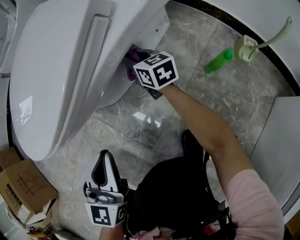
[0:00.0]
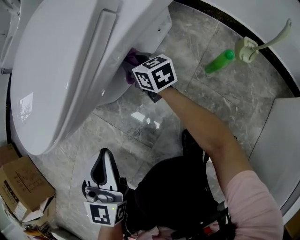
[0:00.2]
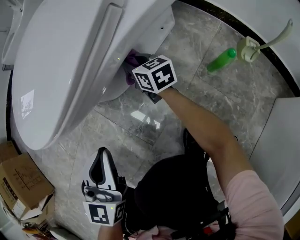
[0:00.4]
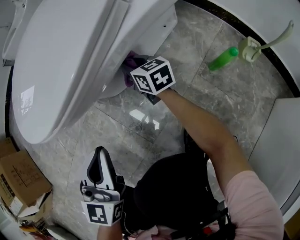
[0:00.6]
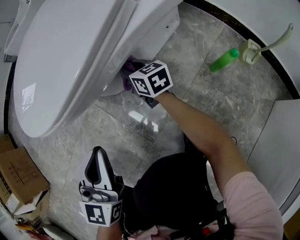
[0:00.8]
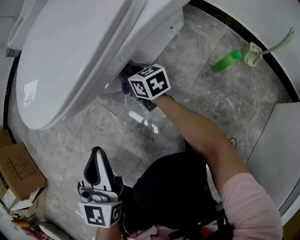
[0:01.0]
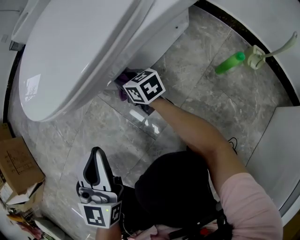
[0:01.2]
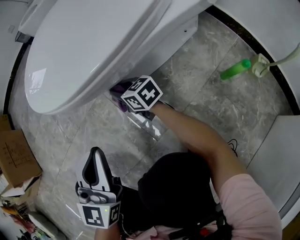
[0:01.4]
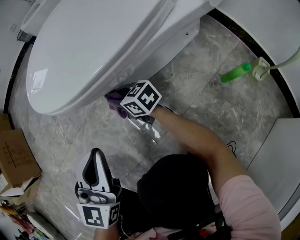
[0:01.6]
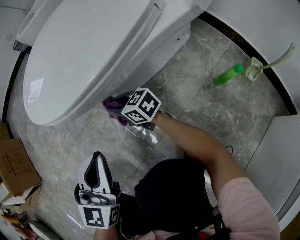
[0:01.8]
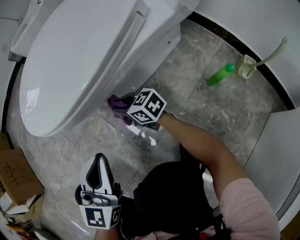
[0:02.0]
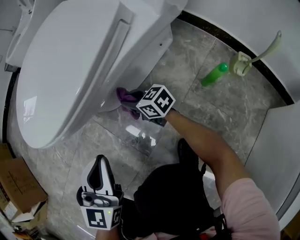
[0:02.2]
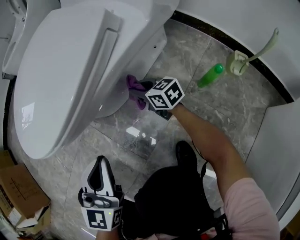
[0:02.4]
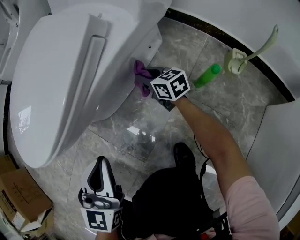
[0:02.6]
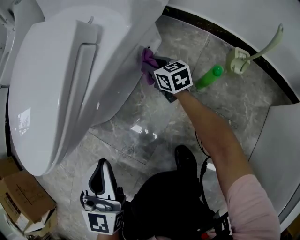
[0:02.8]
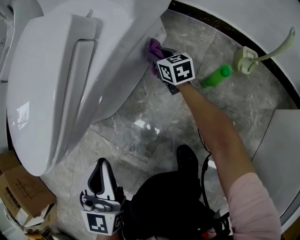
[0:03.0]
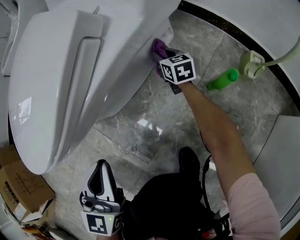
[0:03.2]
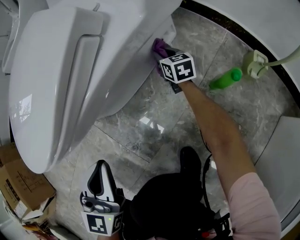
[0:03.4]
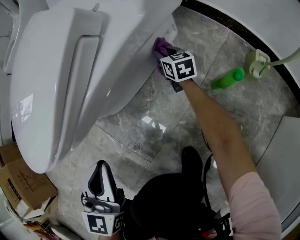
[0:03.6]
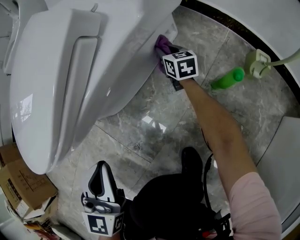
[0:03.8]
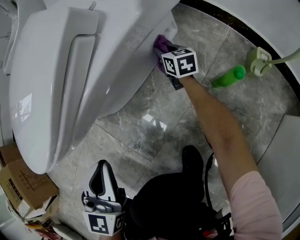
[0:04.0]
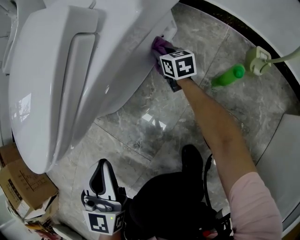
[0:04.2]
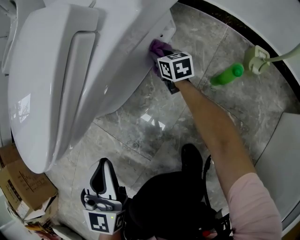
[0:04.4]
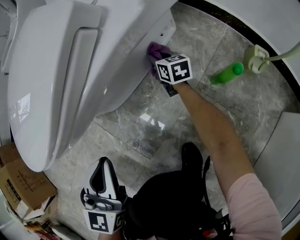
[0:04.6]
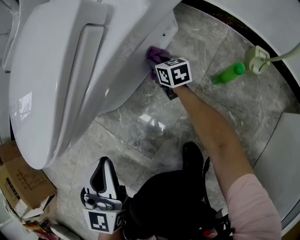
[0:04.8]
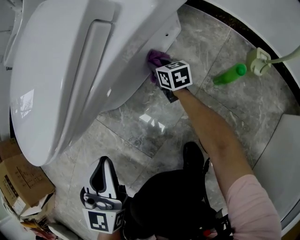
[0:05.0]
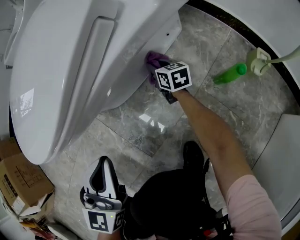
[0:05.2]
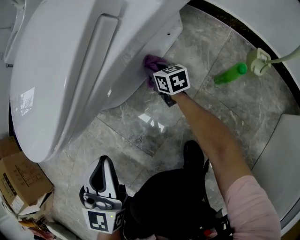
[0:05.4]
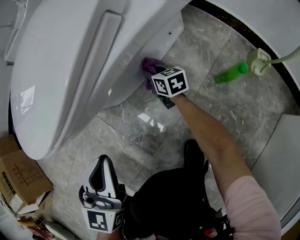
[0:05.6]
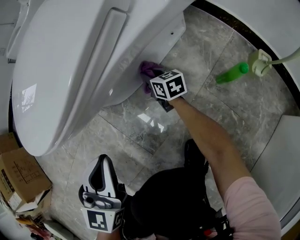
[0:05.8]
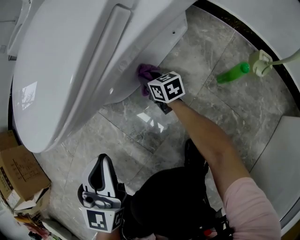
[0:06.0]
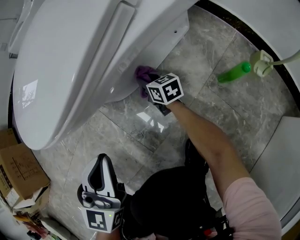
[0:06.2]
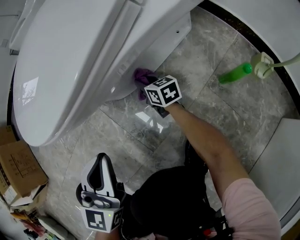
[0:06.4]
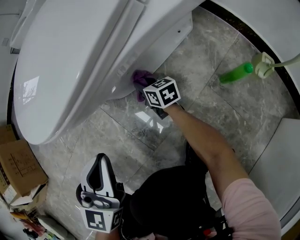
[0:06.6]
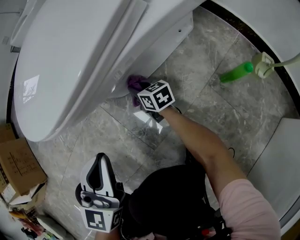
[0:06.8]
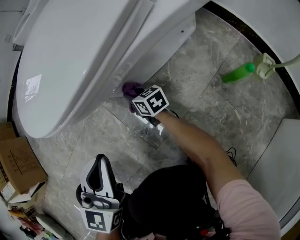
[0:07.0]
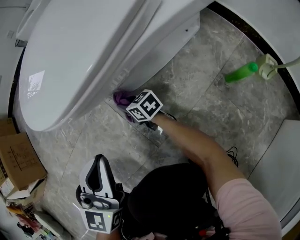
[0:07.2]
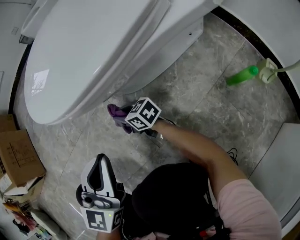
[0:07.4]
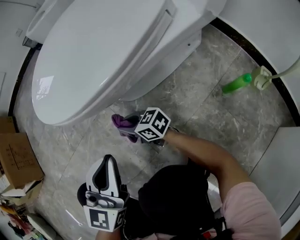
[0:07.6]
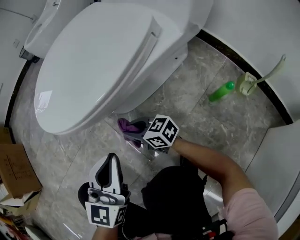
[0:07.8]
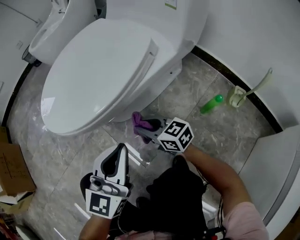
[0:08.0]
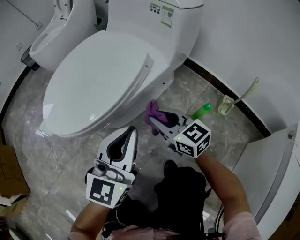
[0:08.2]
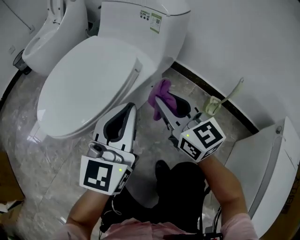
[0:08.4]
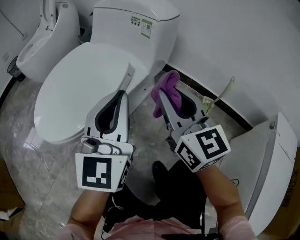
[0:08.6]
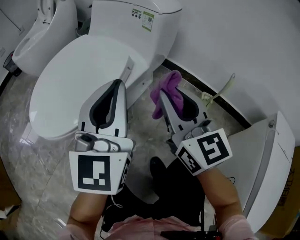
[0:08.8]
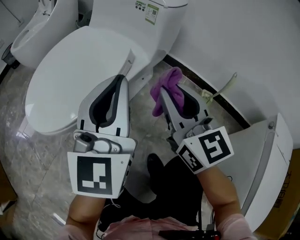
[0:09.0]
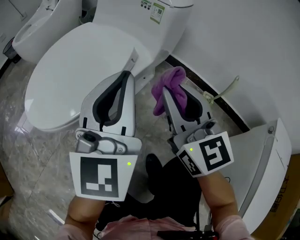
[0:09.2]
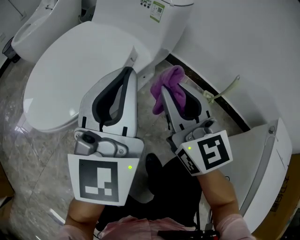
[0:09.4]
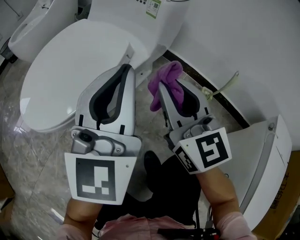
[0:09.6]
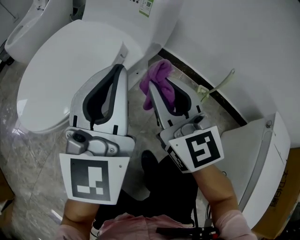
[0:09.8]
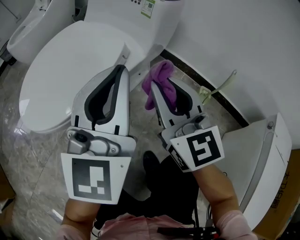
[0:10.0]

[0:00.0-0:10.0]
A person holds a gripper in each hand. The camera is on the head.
0:00.0 to 0:01.4: The right gripper is displaced to the left by roughly 25 cm, and rotates approximately 30 degrees; the left gripper travels to the left by roughly 10 cm.
0:01.4 to 0:02.8: The right gripper shifts by approximately 35 cm, and rotates approximately 40 degrees. Meanwhile the left gripper ends up some 15 cm from where it was.
0:02.8 to 0:04.2: The right gripper heads downward, covering roughly 5 cm.
0:04.2 to 0:05.8: The right gripper moves to the left and backward, some 15 cm.
0:05.8 to 0:07.2: The left gripper shifts roughly 5 cm to the left, while the right gripper heads to the left, covering about 25 cm, and turns by some 30 degrees.
0:07.2 to 0:08.6: The left gripper travels upward by roughly 25 cm, and turns by roughly 30 degrees. The right gripper is displaced upward by some 50 cm, and turns by approximately 70 degrees.
0:08.6 to 0:10.0: The grippers make only small movements.

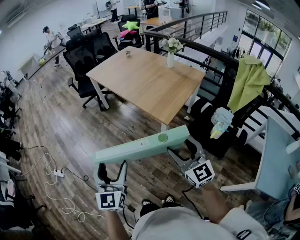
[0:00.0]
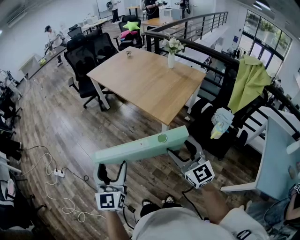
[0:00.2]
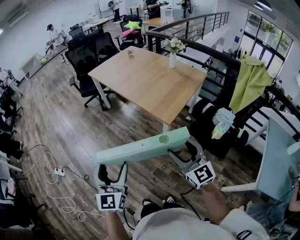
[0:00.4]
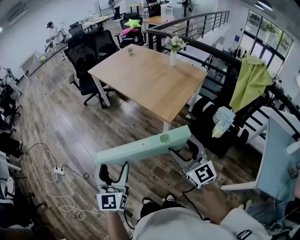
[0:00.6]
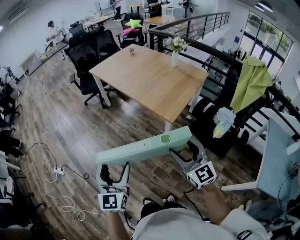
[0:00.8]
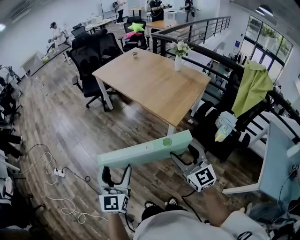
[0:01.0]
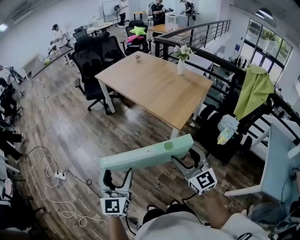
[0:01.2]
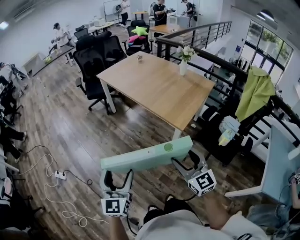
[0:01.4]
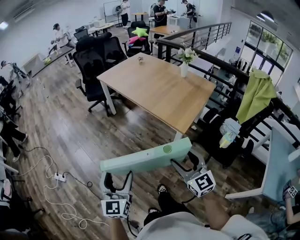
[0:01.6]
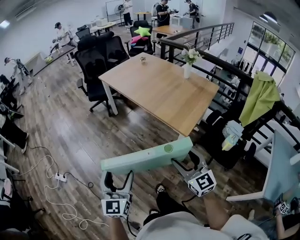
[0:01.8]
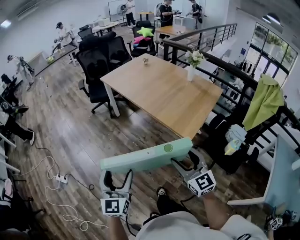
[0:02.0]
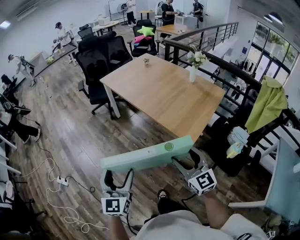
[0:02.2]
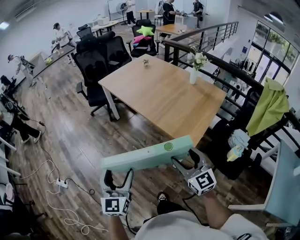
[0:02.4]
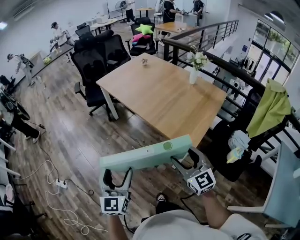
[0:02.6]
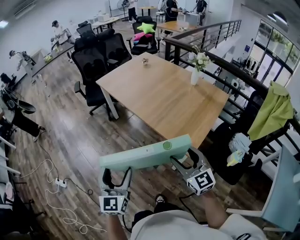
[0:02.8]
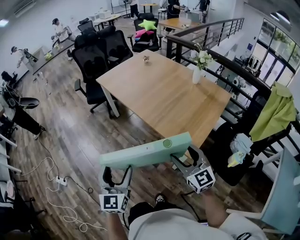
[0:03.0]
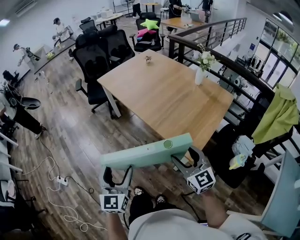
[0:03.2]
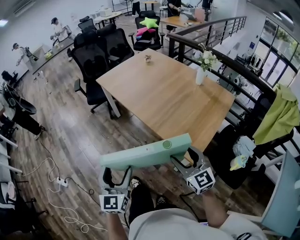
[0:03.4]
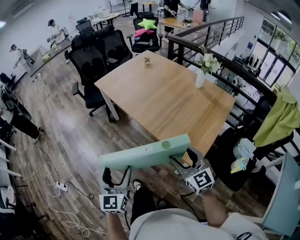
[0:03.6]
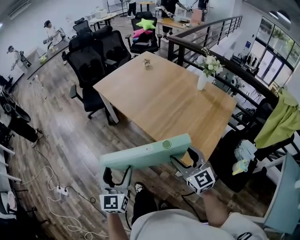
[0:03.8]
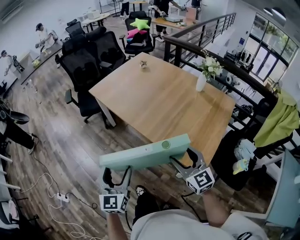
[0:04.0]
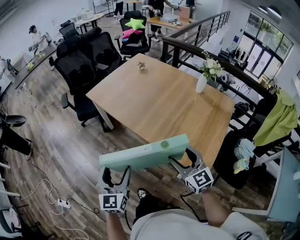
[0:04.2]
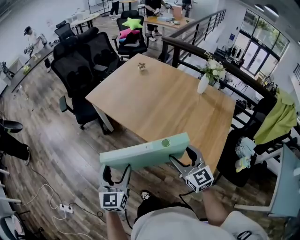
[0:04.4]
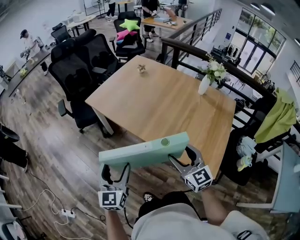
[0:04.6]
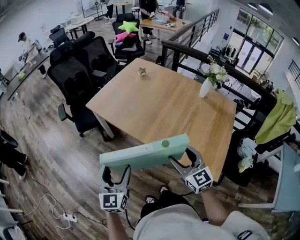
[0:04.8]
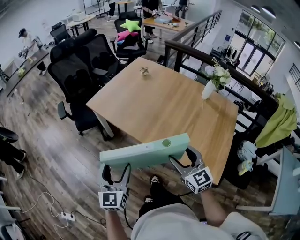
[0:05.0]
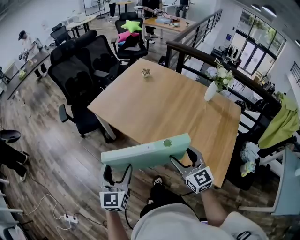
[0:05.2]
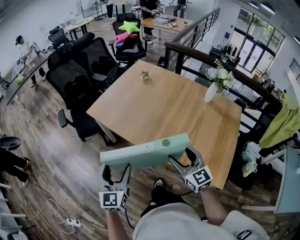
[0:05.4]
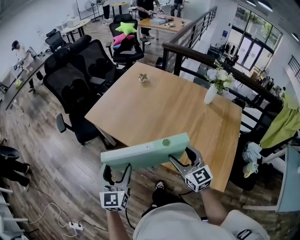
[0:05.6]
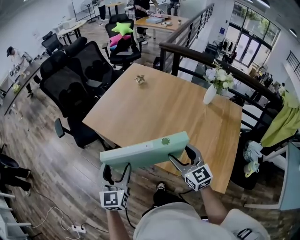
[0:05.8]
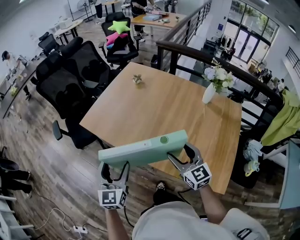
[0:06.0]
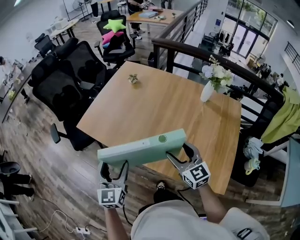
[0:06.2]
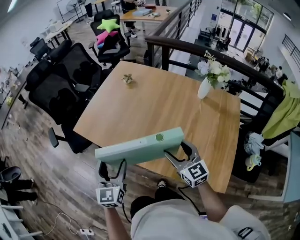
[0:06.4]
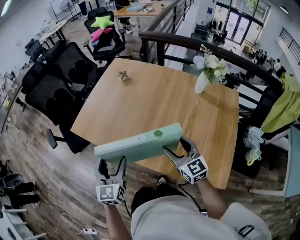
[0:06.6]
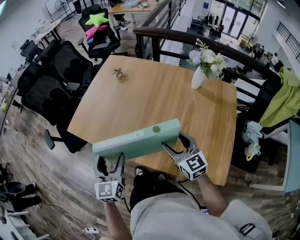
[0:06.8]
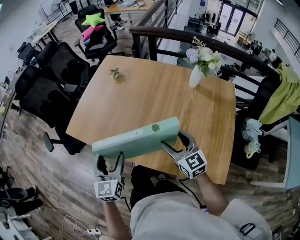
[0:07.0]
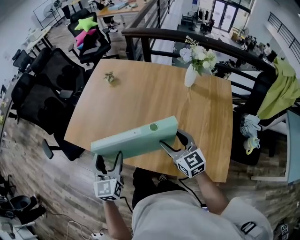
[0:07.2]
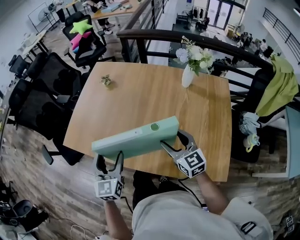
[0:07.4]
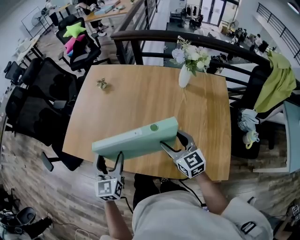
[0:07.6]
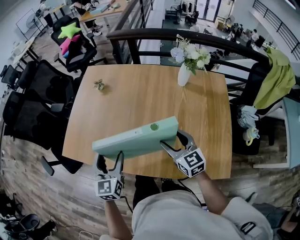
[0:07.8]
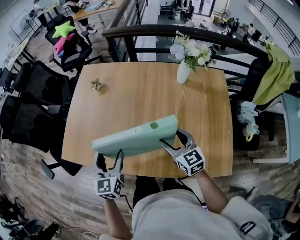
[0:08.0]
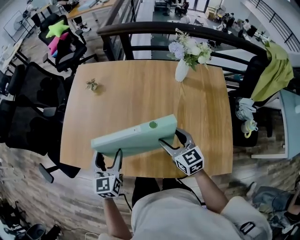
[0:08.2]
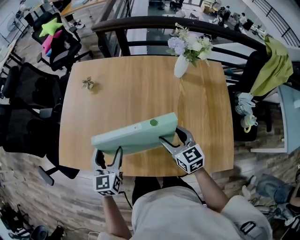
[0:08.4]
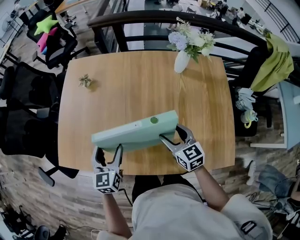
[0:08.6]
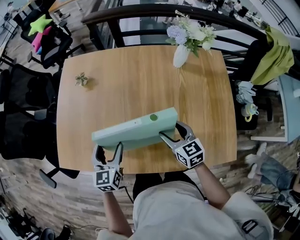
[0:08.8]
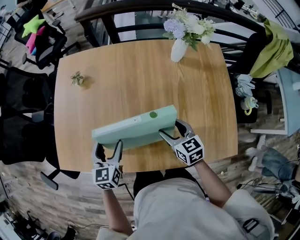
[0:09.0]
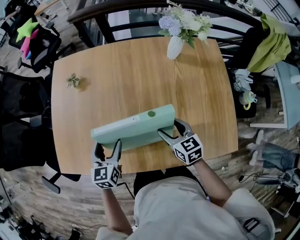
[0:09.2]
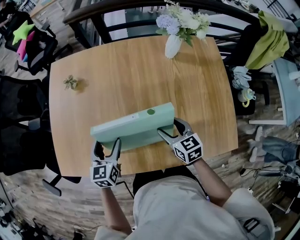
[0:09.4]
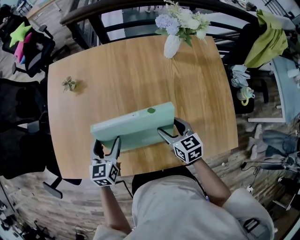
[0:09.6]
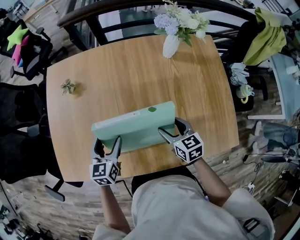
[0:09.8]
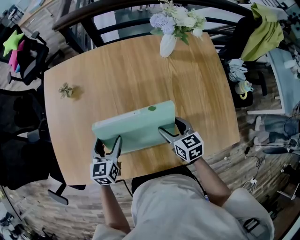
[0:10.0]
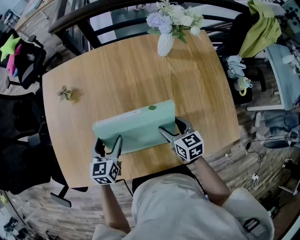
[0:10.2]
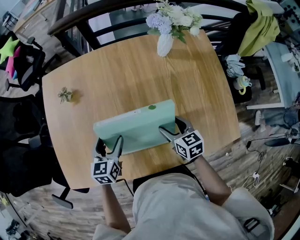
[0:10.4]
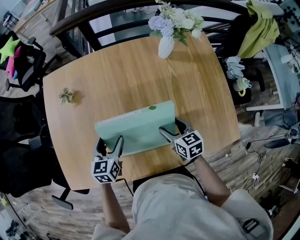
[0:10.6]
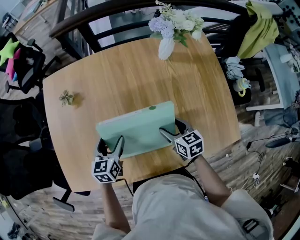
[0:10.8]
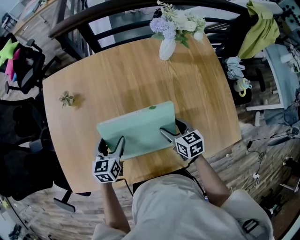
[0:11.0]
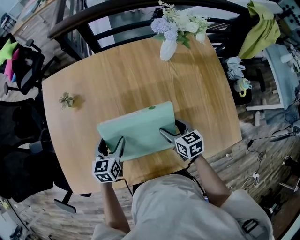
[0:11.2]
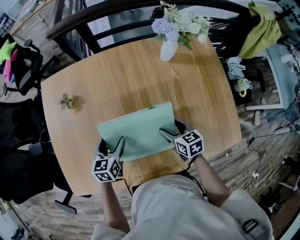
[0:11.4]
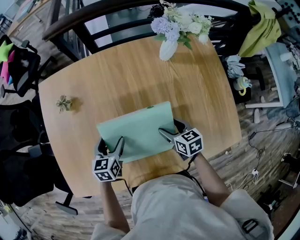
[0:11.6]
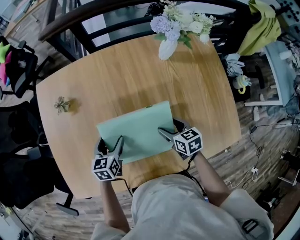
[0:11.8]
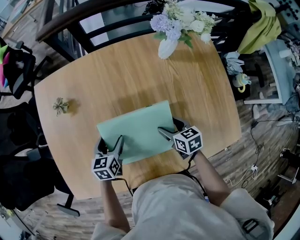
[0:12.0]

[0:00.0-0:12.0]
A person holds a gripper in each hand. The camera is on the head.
0:00.0 to 0:01.6: The two grippers go approximately 10 cm to the left.
0:01.6 to 0:03.0: Both grippers travel together forward, roughly 25 cm.
0:03.0 to 0:04.4: Both grippers travel together forward, about 25 cm.
0:04.4 to 0:06.0: The grippers both shift forward by roughly 20 cm.
0:06.0 to 0:07.6: The right gripper shifts some 15 cm to the right, forward and downward. The left gripper goes roughly 15 cm forward and to the right.
0:07.6 to 0:09.0: The right gripper heads downward and forward, covering approximately 10 cm, and turns by about 20 degrees. Meanwhile the left gripper goes approximately 15 cm forward and downward, and swivels about 20 degrees.
0:09.0 to 0:10.4: The left gripper shifts about 5 cm forward.
0:10.4 to 0:12.0: The right gripper moves downward, about 5 cm. Meanwhile the left gripper is displaced downward and forward by roughly 10 cm.

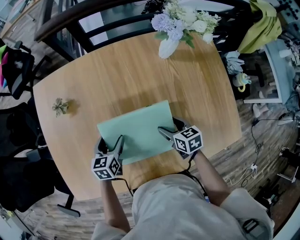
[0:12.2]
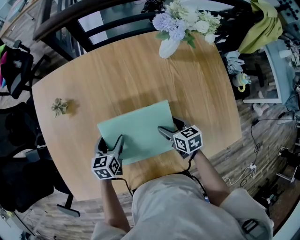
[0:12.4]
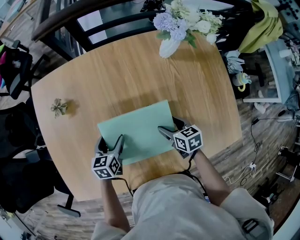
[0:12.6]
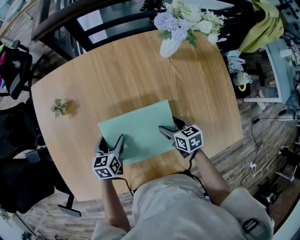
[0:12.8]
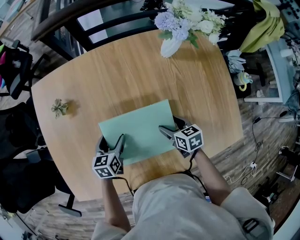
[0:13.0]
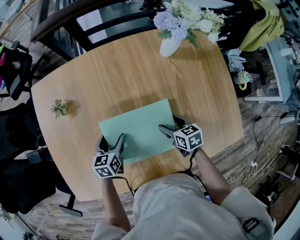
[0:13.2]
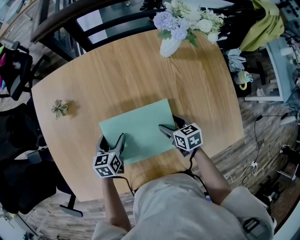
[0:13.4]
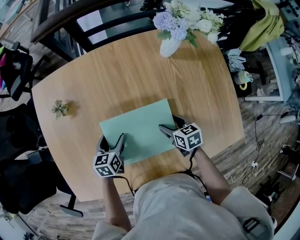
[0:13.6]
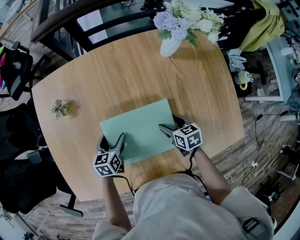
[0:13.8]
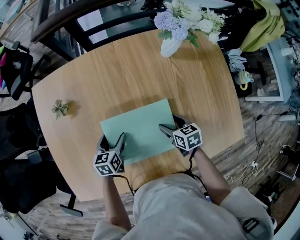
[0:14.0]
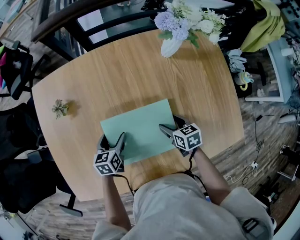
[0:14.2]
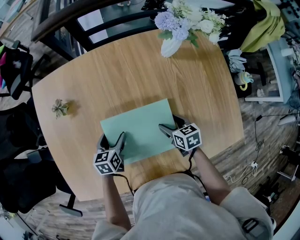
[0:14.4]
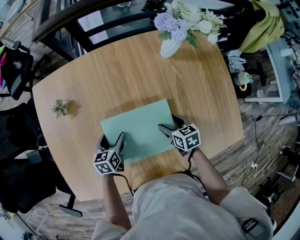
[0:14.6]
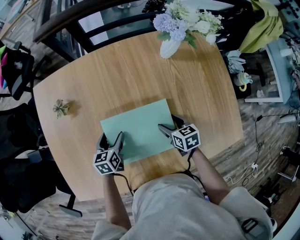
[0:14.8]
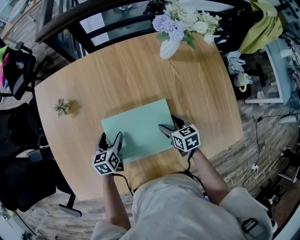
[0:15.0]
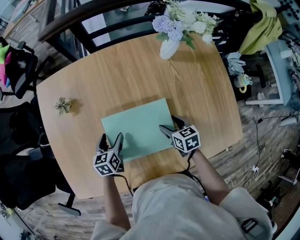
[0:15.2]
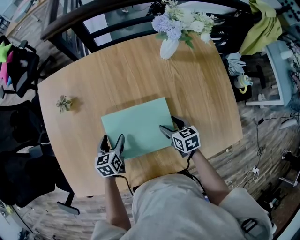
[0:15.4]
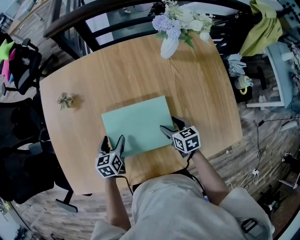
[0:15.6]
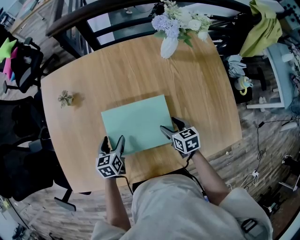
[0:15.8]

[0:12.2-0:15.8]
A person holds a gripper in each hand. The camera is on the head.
0:12.2 to 0:14.0: There are only small adjustments of the grippers.
0:14.0 to 0:15.8: The left gripper goes some 5 cm backward.
